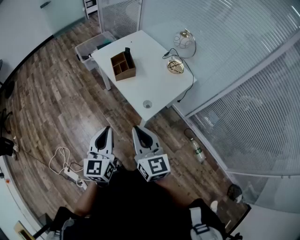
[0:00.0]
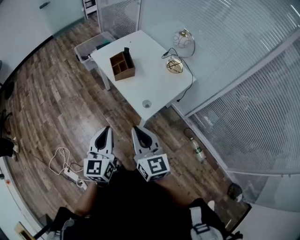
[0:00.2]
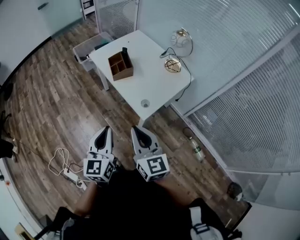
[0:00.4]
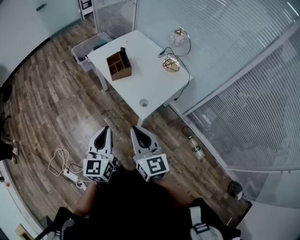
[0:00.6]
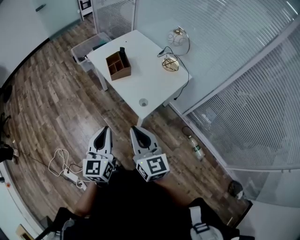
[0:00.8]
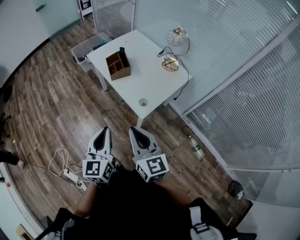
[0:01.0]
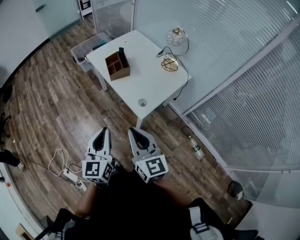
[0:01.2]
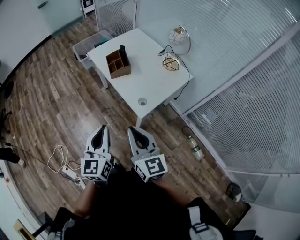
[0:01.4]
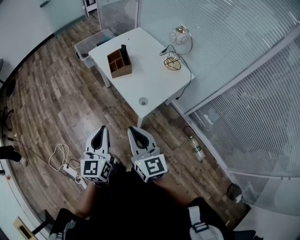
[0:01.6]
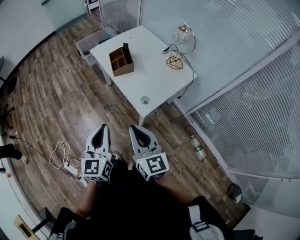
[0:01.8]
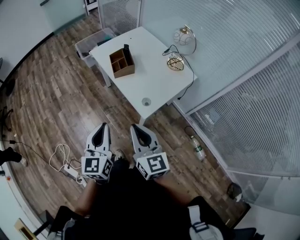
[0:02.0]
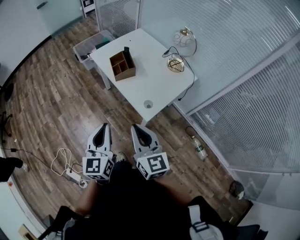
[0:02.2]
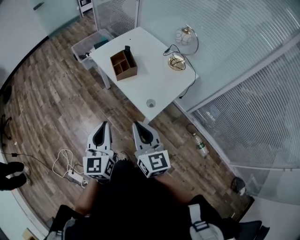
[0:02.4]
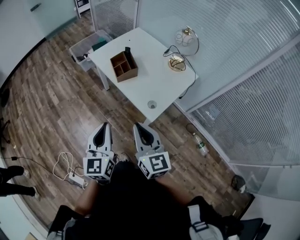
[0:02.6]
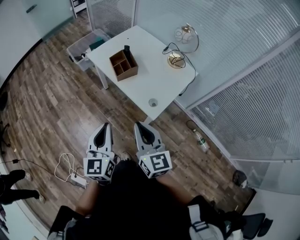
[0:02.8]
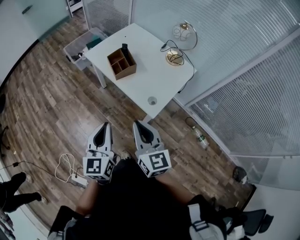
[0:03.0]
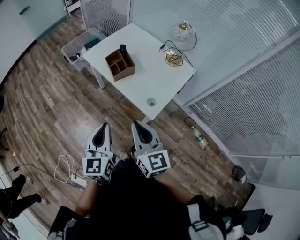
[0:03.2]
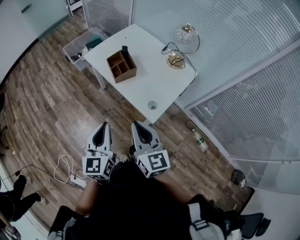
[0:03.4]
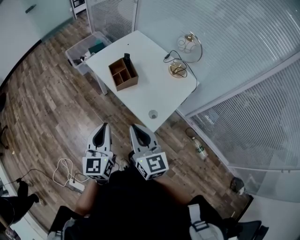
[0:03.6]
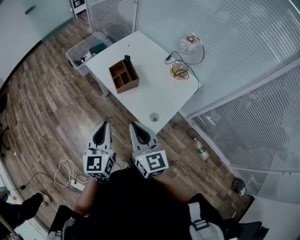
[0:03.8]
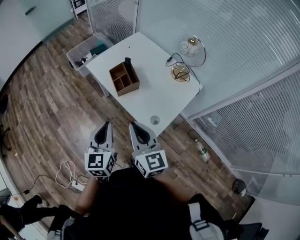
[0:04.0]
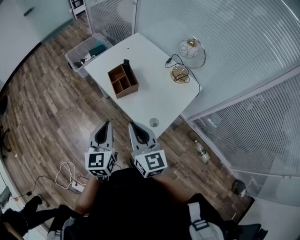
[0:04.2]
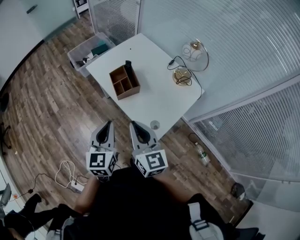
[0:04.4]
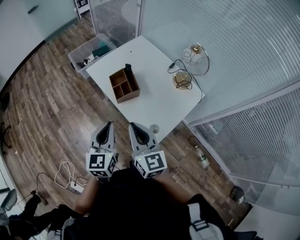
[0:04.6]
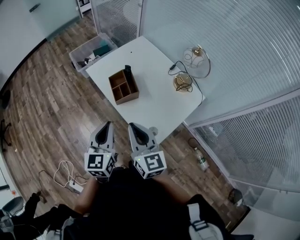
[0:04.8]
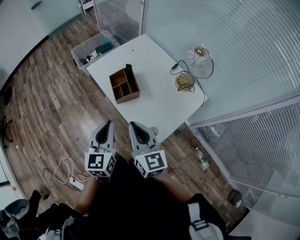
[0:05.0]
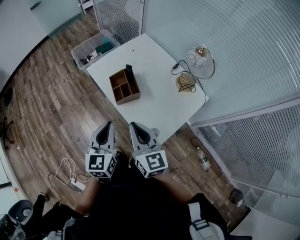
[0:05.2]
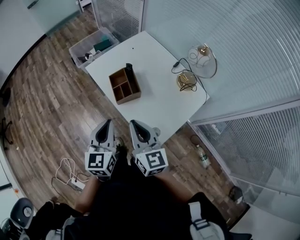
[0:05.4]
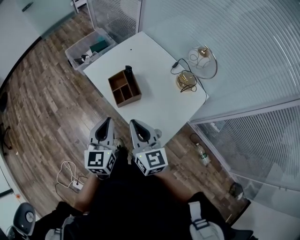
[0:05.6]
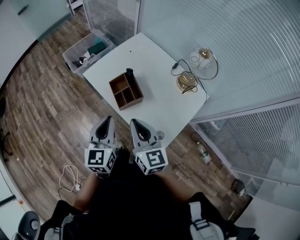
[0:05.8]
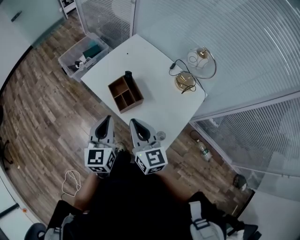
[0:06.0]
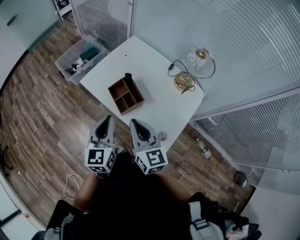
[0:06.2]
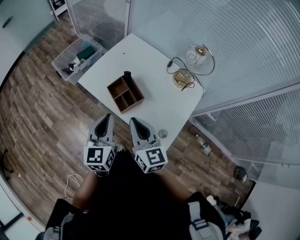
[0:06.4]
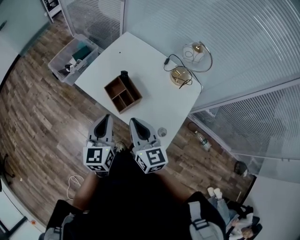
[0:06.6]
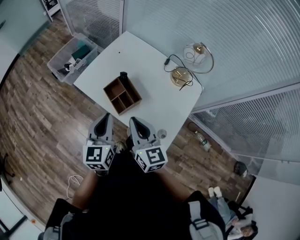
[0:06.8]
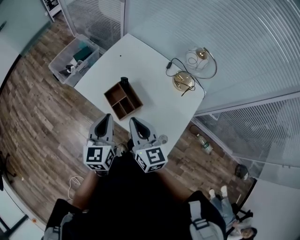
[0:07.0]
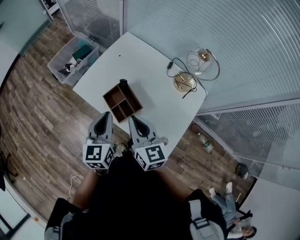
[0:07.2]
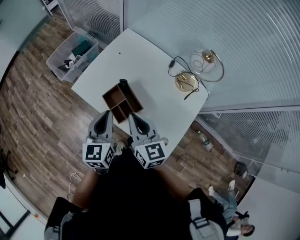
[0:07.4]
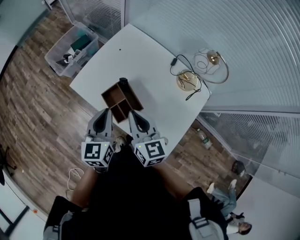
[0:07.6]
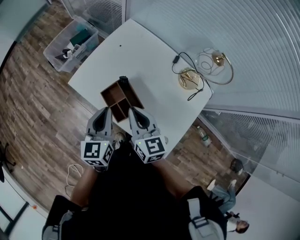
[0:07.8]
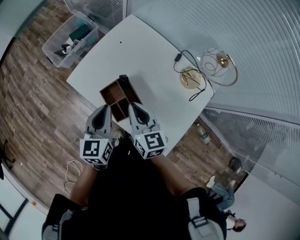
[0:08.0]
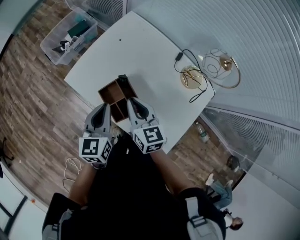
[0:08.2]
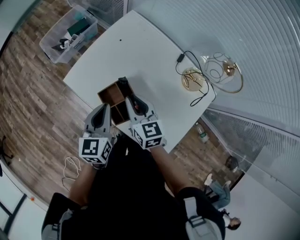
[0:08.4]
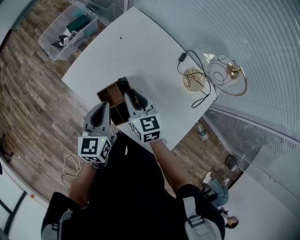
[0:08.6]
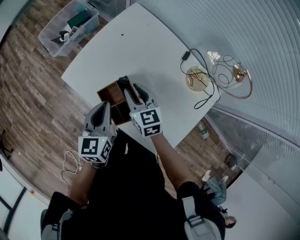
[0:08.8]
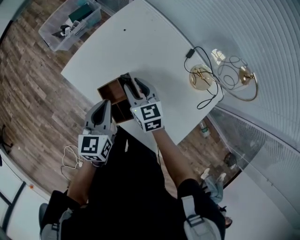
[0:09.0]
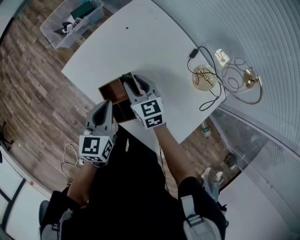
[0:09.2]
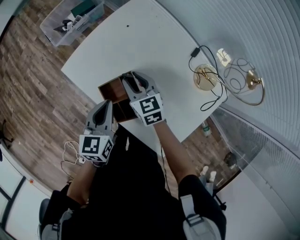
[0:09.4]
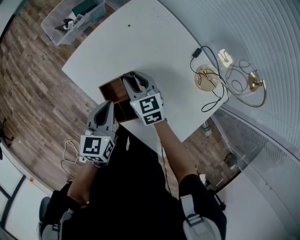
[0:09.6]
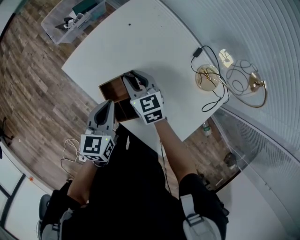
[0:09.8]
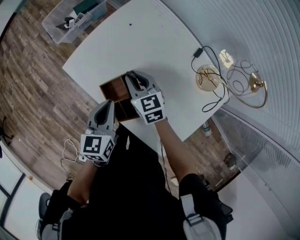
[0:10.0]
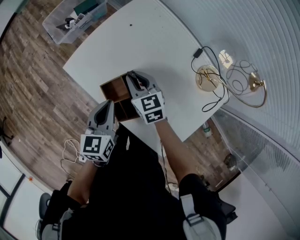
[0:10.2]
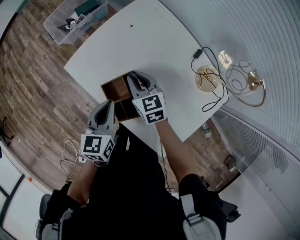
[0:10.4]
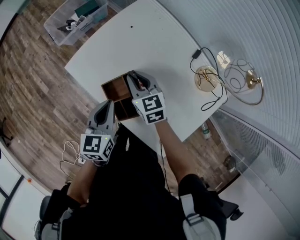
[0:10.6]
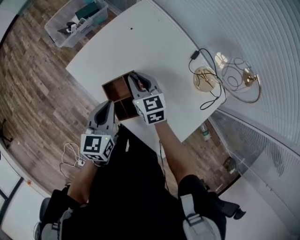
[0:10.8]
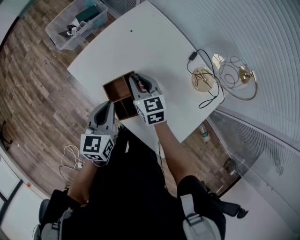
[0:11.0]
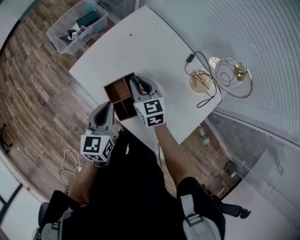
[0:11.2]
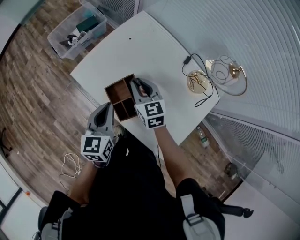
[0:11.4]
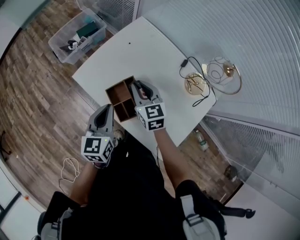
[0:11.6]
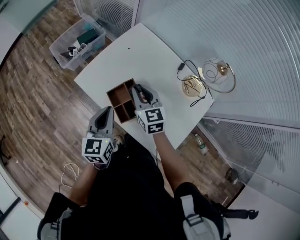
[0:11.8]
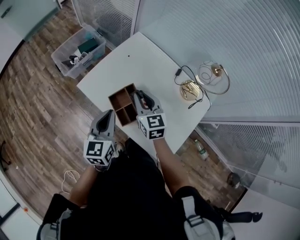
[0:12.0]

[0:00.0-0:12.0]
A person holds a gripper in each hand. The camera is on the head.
0.0 to 1.6 s: The grippers make only small movements.
1.6 to 3.0 s: Both grippers travel together to the left and forward, roughly 10 cm.
3.0 to 4.4 s: The grippers both shift forward by roughly 15 cm.
4.4 to 6.0 s: The two grippers go about 15 cm forward.
6.0 to 7.6 s: Both grippers travel together forward, approximately 15 cm.
7.6 to 9.0 s: The right gripper shifts approximately 20 cm downward and forward, rotates approximately 20 degrees, and opens; the left gripper travels downward and forward by some 10 cm.
9.0 to 10.4 s: The grippers make only small movements.
10.4 to 12.0 s: The two grippers go about 15 cm upward and backward.

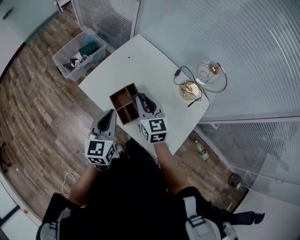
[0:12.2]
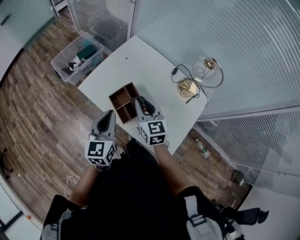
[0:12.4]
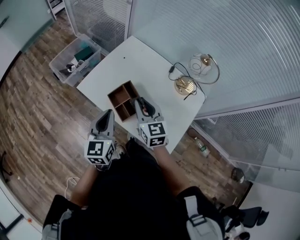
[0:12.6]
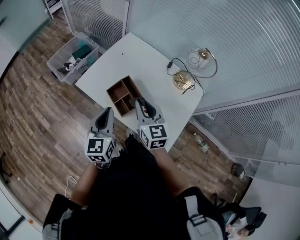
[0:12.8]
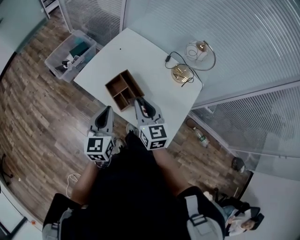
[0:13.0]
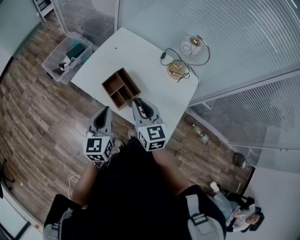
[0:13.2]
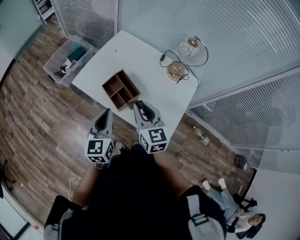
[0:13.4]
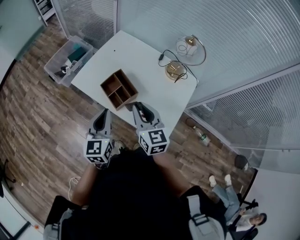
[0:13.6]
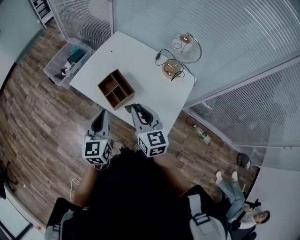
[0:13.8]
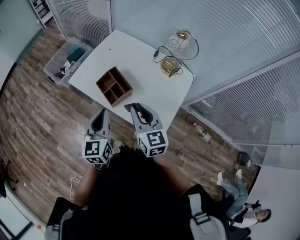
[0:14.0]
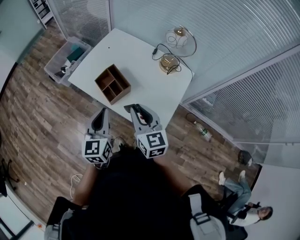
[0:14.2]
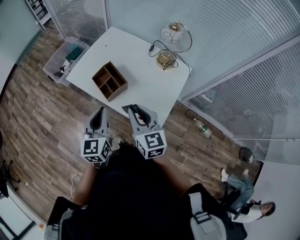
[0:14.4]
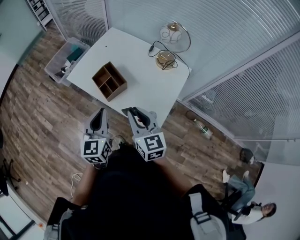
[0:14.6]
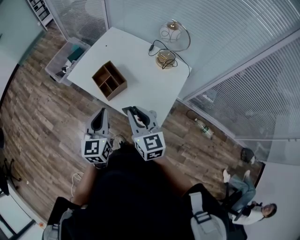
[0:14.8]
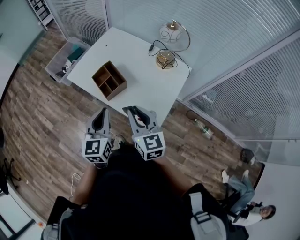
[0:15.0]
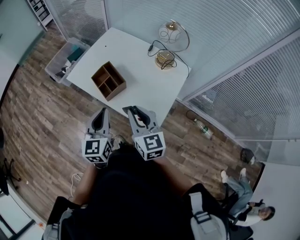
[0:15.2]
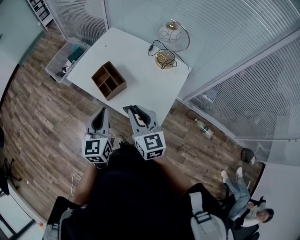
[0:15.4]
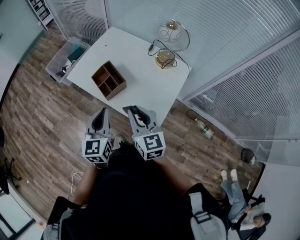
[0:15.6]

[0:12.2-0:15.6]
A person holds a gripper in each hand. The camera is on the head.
12.2 to 13.8 s: The right gripper is displaced backward by some 20 cm. Meanwhile the left gripper shifts some 10 cm backward.
13.8 to 15.6 s: The left gripper is displaced backward and to the right by about 10 cm. Meanwhile the right gripper heads backward, covering roughly 10 cm.

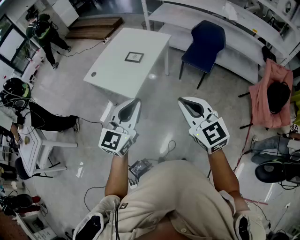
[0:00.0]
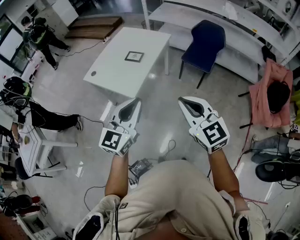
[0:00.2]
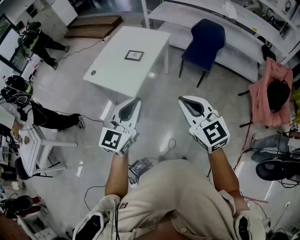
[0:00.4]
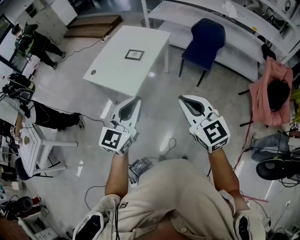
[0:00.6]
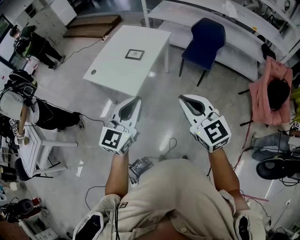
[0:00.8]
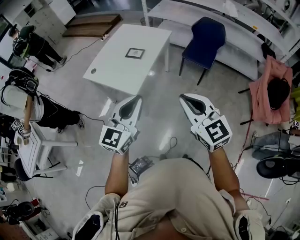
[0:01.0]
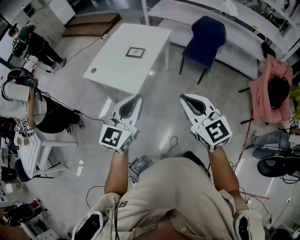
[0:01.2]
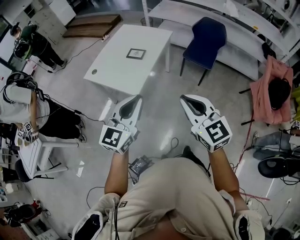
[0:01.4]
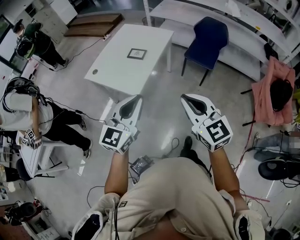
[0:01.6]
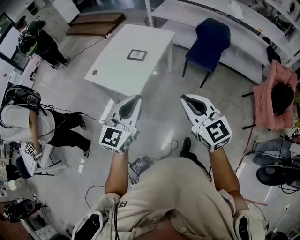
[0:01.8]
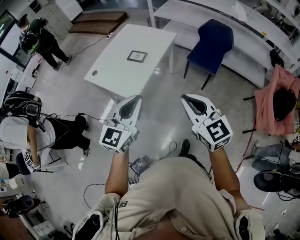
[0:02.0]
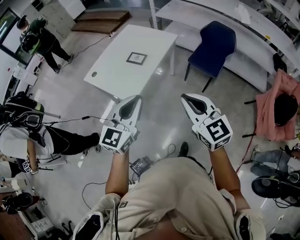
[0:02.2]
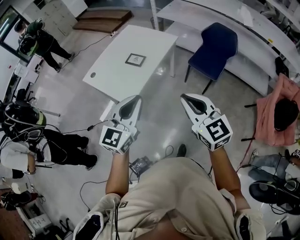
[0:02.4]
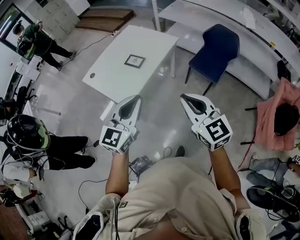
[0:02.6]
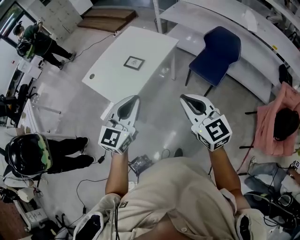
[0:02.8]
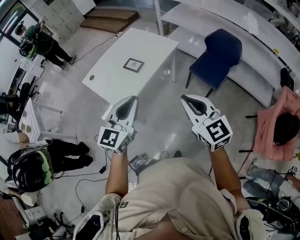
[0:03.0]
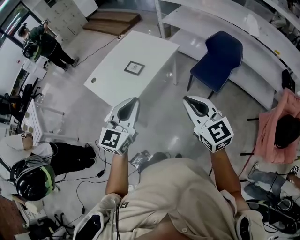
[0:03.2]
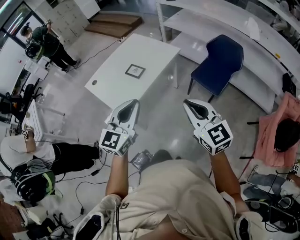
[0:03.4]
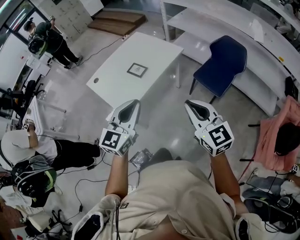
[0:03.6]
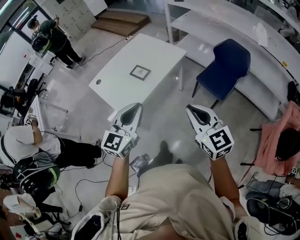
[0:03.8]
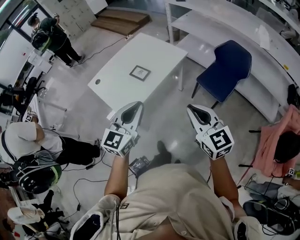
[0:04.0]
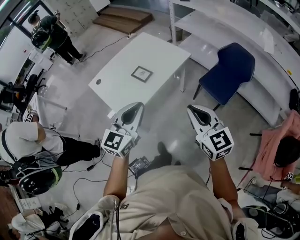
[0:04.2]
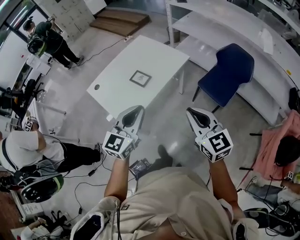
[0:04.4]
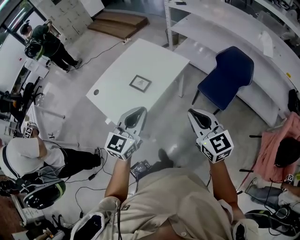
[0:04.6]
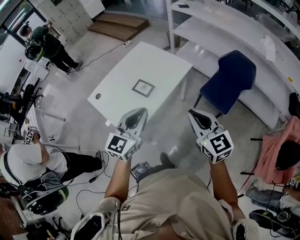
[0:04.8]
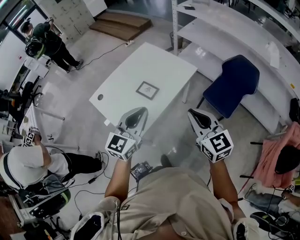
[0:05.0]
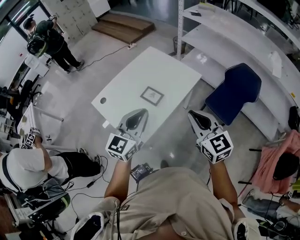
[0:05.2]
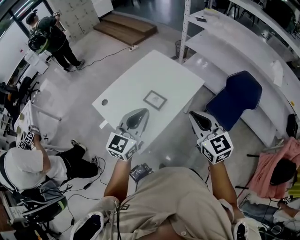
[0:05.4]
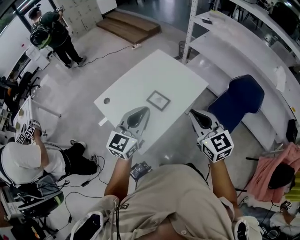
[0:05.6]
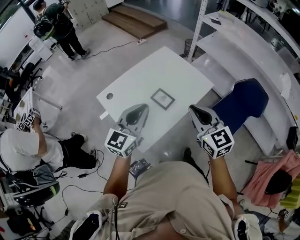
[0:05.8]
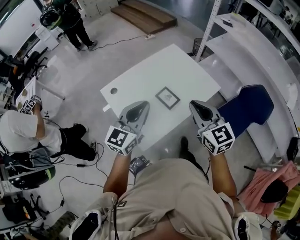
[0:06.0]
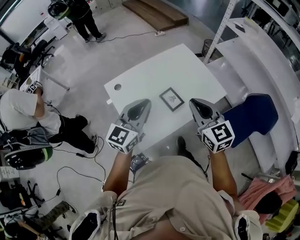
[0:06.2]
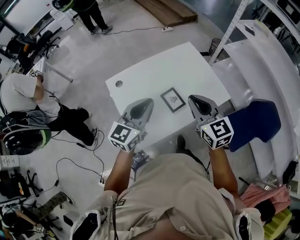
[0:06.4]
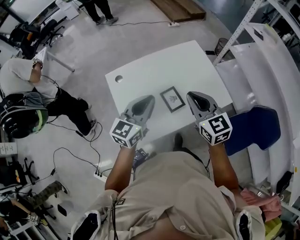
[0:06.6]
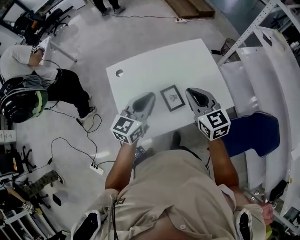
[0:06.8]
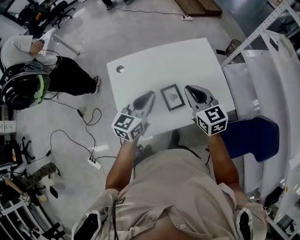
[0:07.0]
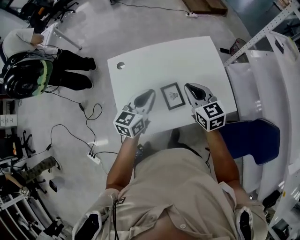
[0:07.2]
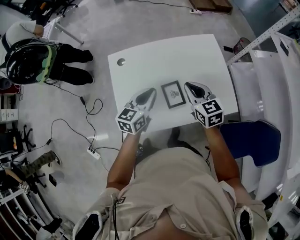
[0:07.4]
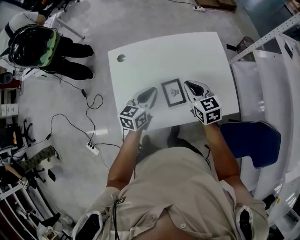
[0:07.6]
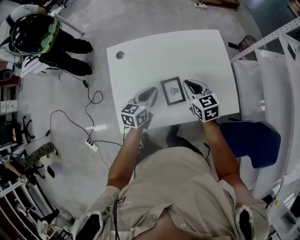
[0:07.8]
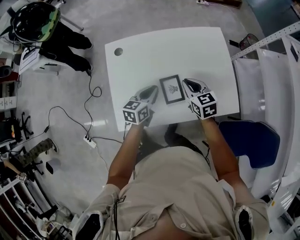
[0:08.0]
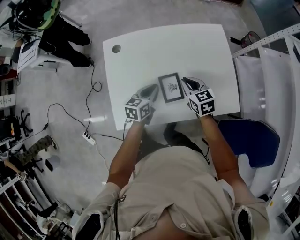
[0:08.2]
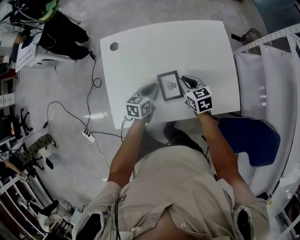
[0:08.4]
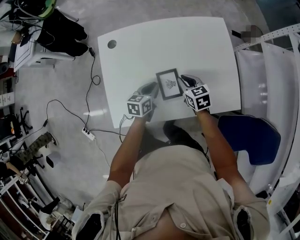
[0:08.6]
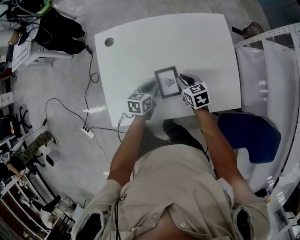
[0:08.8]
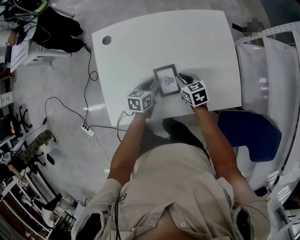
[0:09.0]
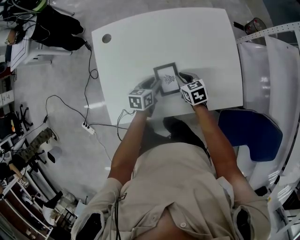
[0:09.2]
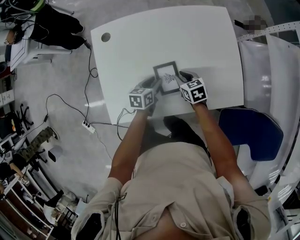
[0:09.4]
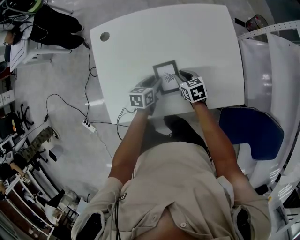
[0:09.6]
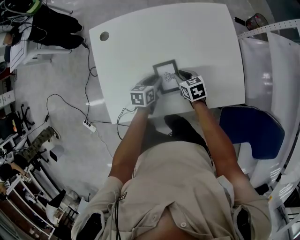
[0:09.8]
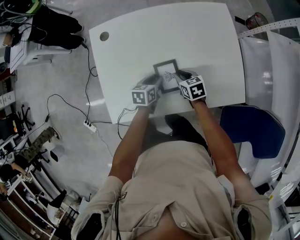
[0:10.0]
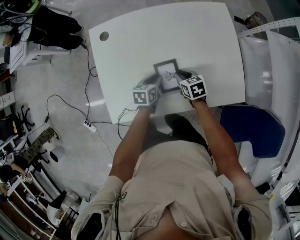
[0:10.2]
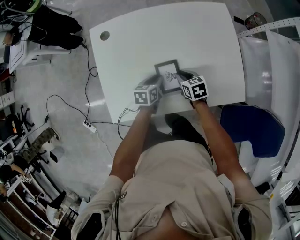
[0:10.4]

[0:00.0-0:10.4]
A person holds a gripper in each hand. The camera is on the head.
0.0 to 1.4 s: The grippers move only a little.
1.4 to 3.0 s: The grippers both shift forward and to the right by about 25 cm.
3.0 to 4.4 s: The two grippers go some 10 cm forward.
4.4 to 6.0 s: The right gripper goes some 35 cm forward and to the left. The left gripper heads to the left and forward, covering some 30 cm.
6.0 to 7.4 s: The right gripper ends up about 30 cm from where it was, and changes its angle by some 30 degrees. Meanwhile the left gripper travels downward by approximately 20 cm, and turns by about 40 degrees.
7.4 to 9.0 s: Both grippers travel together downward, approximately 25 cm. The right gripper swivels about 20 degrees. Meanwhile the left gripper rotates approximately 30 degrees.
9.0 to 10.4 s: The grippers move only a little.
